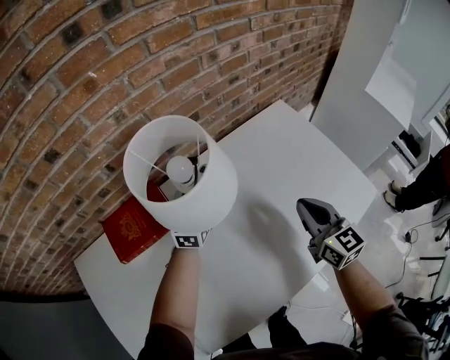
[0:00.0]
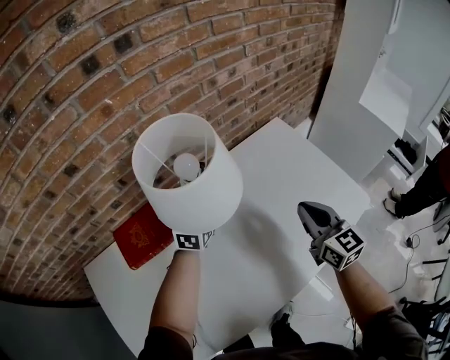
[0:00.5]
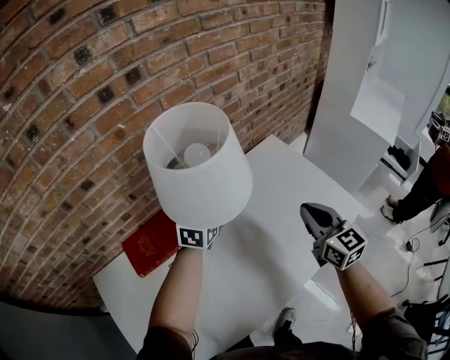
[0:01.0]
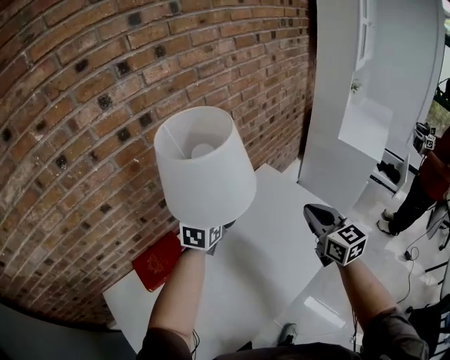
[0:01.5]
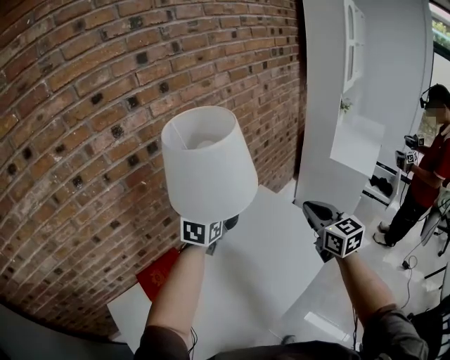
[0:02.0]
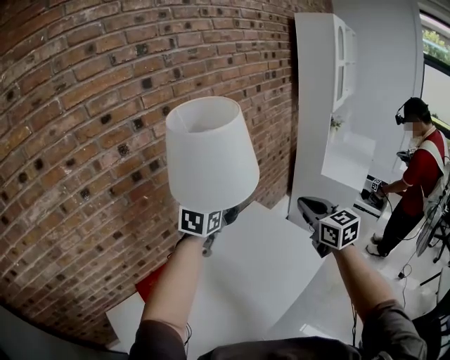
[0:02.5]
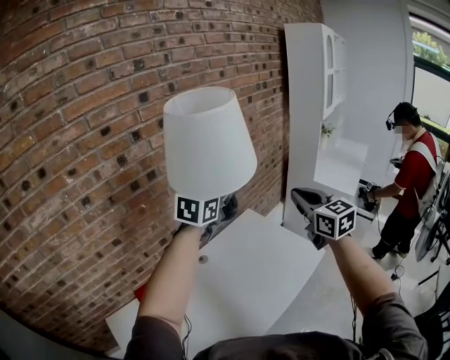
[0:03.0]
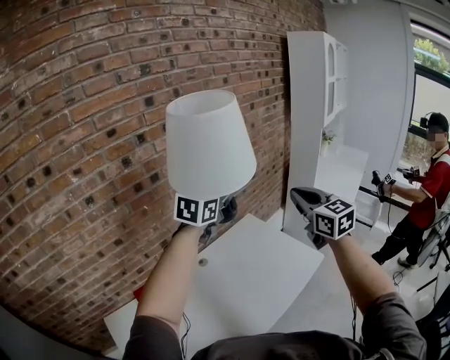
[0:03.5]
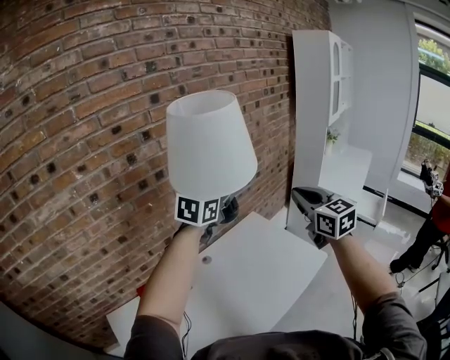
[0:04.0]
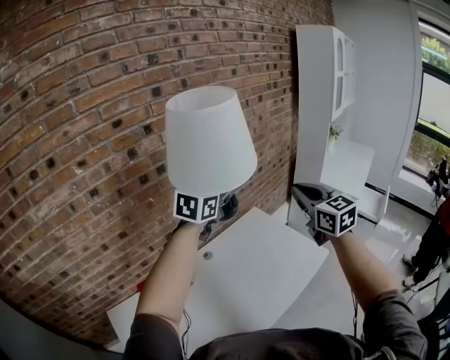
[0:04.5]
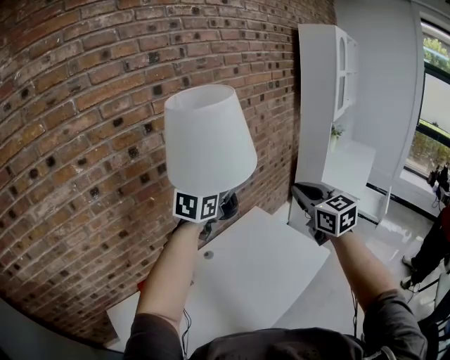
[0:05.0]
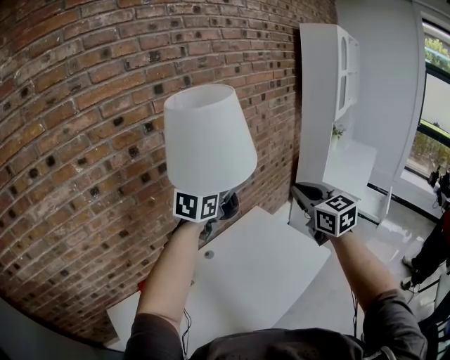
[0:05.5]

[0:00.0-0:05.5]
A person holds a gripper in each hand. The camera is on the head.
0:00.0 to 0:02.0: The right gripper travels upward by roughly 25 cm. Meanwhile the left gripper moves upward and to the right, about 35 cm.
0:02.0 to 0:03.5: The grippers both shift upward by roughly 15 cm.
0:03.5 to 0:05.5: The grippers move only a little.

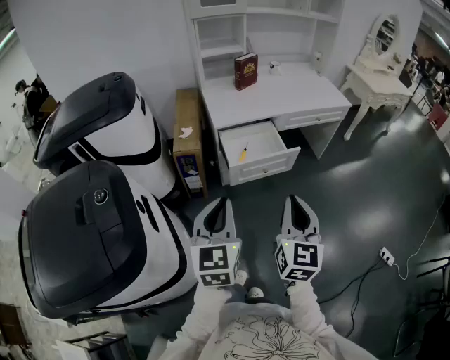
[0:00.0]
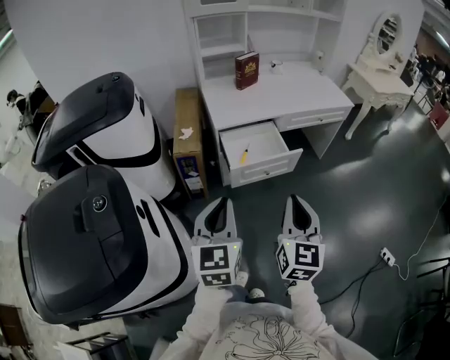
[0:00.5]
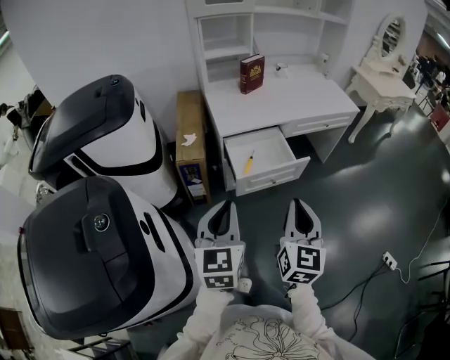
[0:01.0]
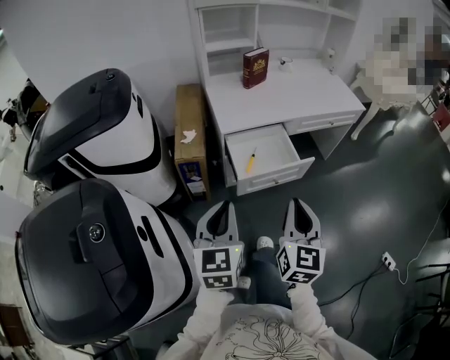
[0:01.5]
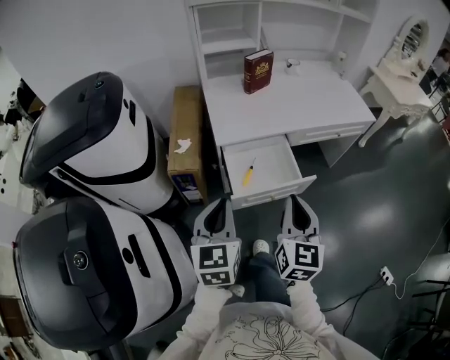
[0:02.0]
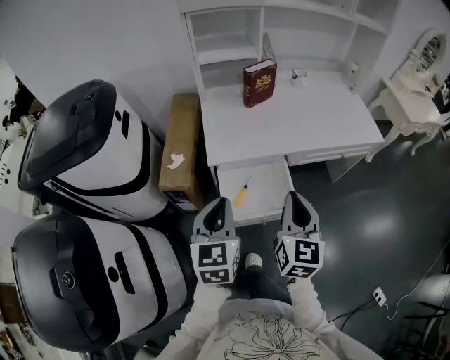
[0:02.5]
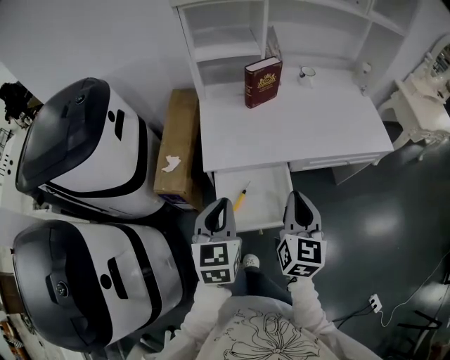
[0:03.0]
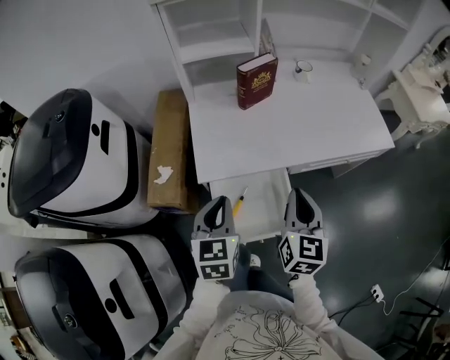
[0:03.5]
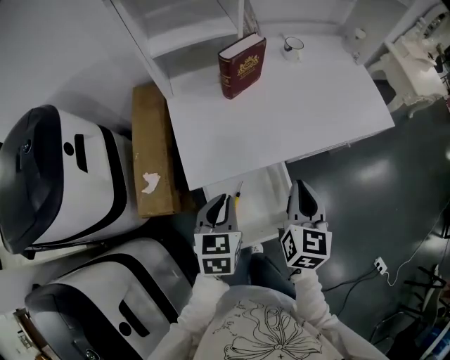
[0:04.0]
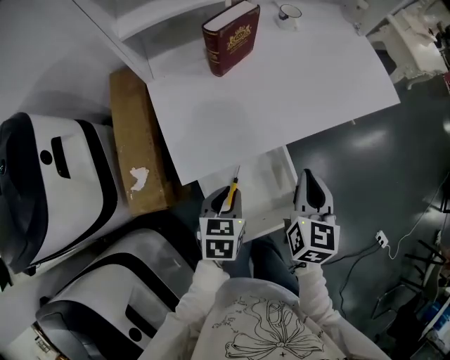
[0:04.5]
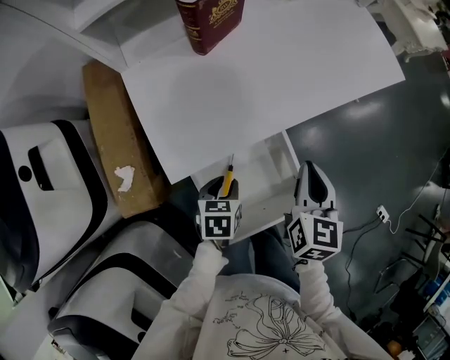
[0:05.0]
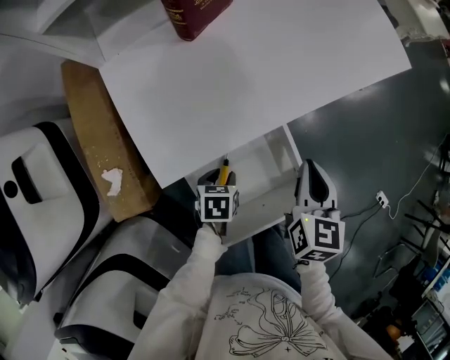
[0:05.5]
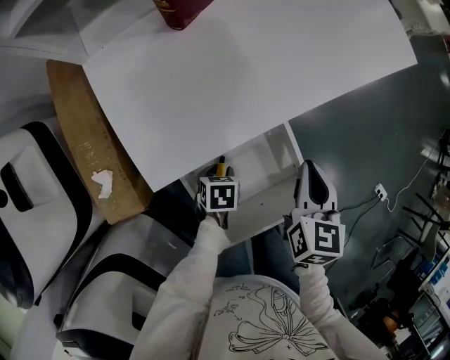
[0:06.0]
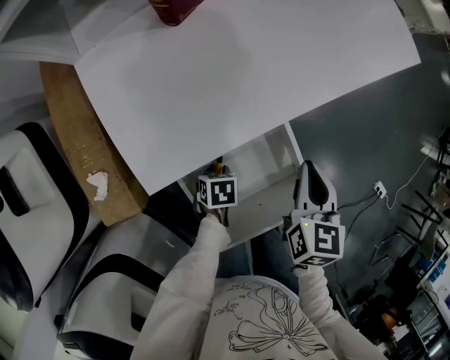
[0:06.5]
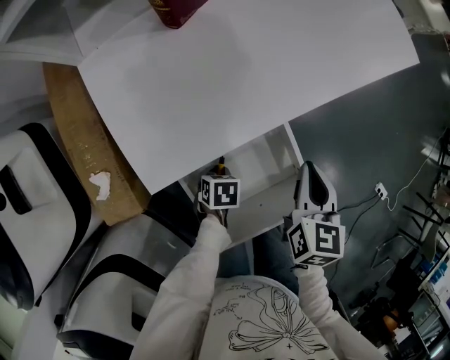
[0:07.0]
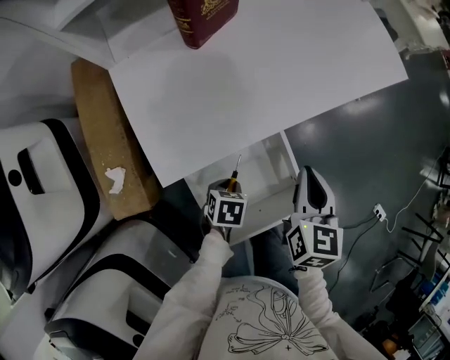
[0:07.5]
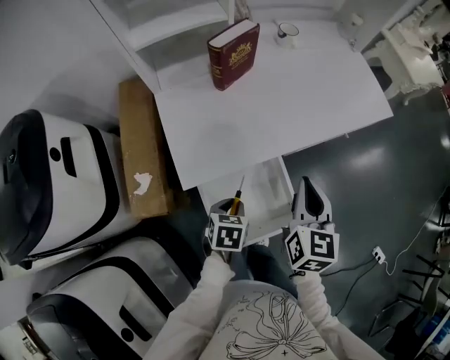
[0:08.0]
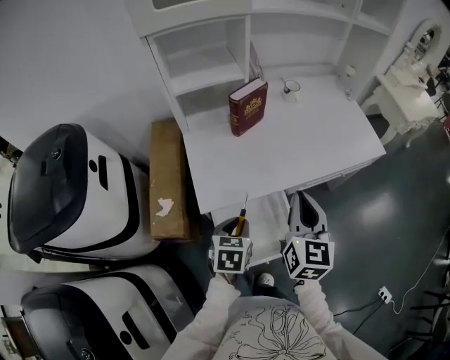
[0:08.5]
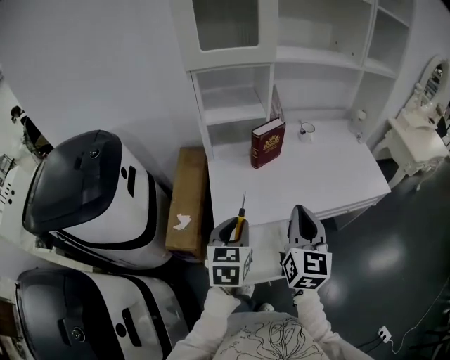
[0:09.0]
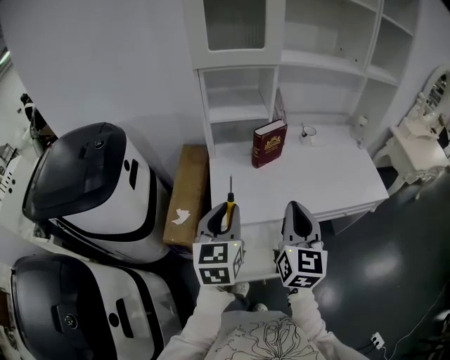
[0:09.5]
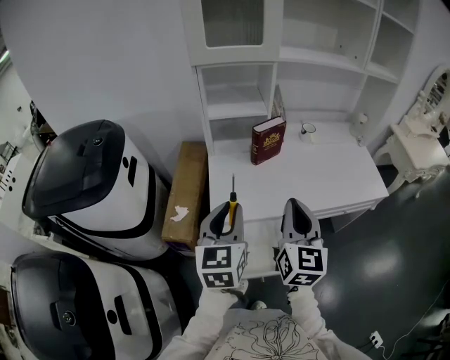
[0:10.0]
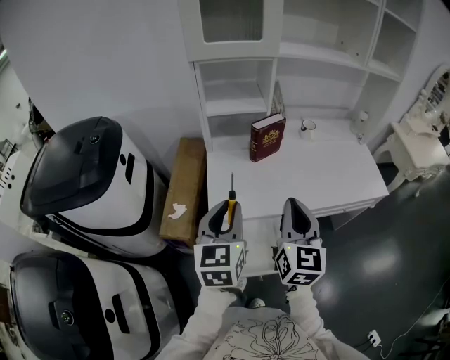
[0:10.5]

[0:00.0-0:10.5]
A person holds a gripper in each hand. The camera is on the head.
0:00.0 to 0:02.0: The grippers both shift forward by roughly 20 cm.
0:02.0 to 0:04.0: The right gripper shifts approximately 30 cm forward. Meanwhile the left gripper moves forward and downward, about 35 cm, and changes its angle by roughly 20 degrees.
0:04.0 to 0:06.5: The left gripper travels downward by about 35 cm, points its fingers about 40 degrees further downward, and opens its fingers. The right gripper goes some 15 cm downward, and swivels some 20 degrees.
0:06.5 to 0:08.5: The two grippers go about 30 cm upward. The left gripper angles its fingers upward, by approximately 30 degrees; the right gripper swivels about 30 degrees.
0:08.5 to 0:10.5: The left gripper travels upward by roughly 20 cm, and tilts its fingers some 30 degrees upward, while the right gripper moves upward, some 10 cm.

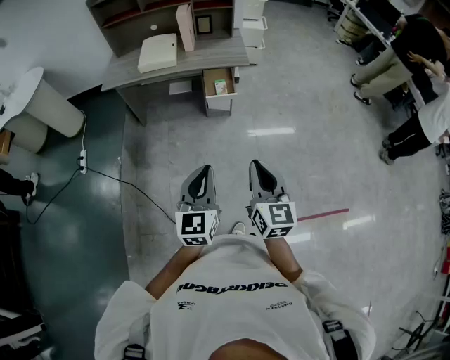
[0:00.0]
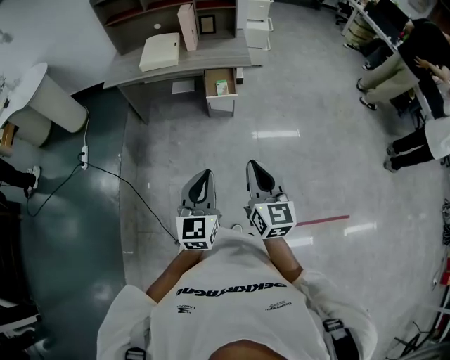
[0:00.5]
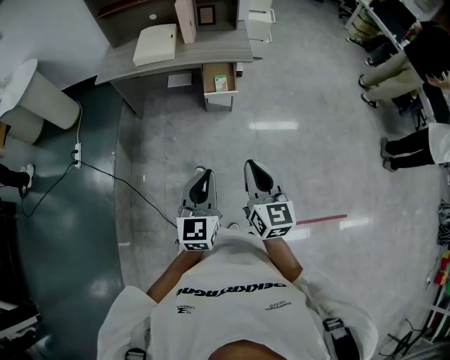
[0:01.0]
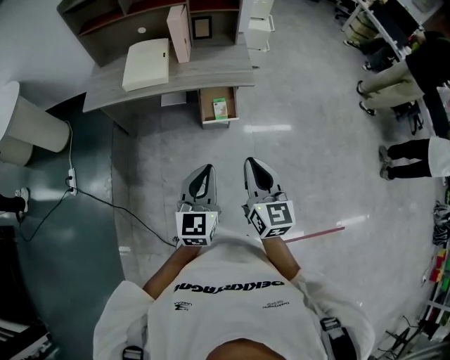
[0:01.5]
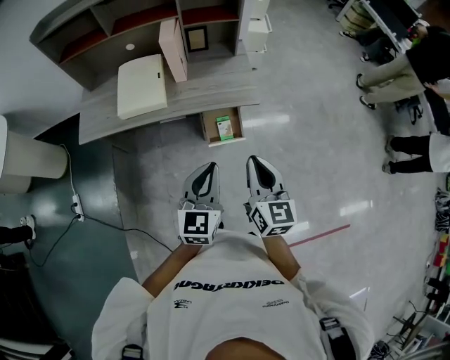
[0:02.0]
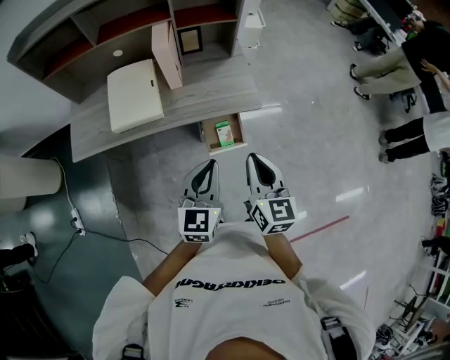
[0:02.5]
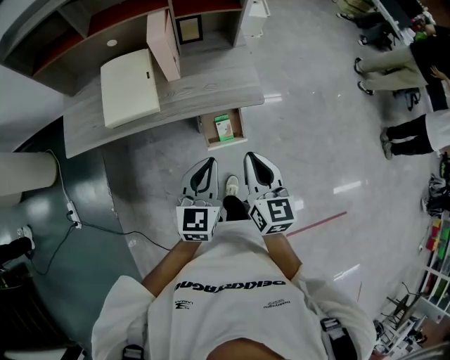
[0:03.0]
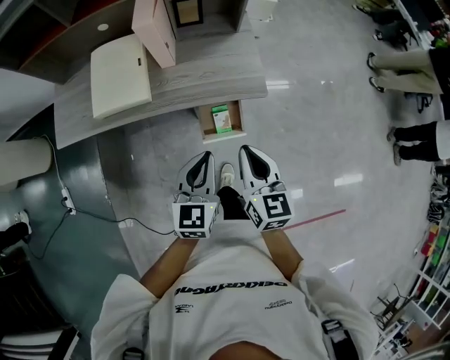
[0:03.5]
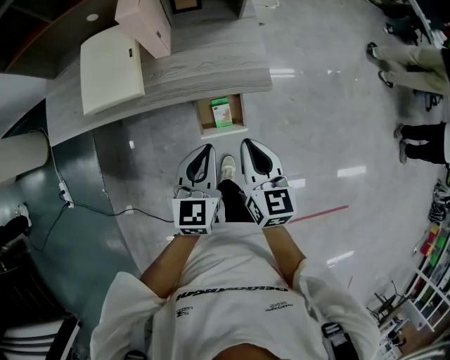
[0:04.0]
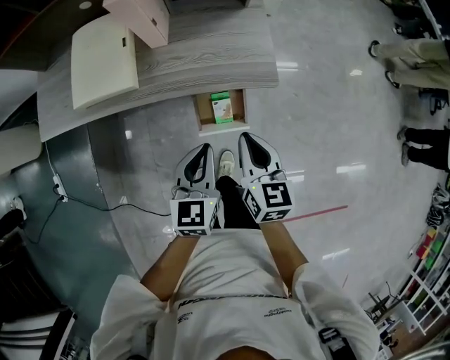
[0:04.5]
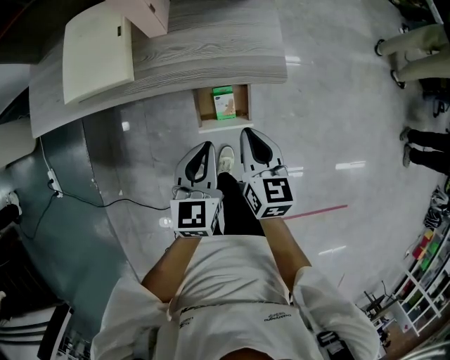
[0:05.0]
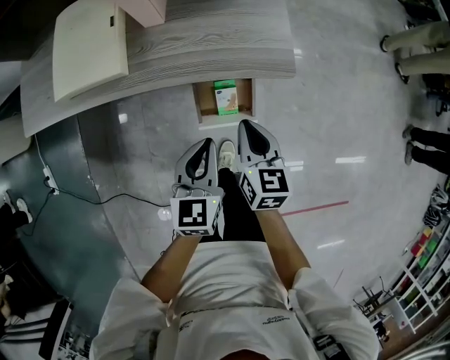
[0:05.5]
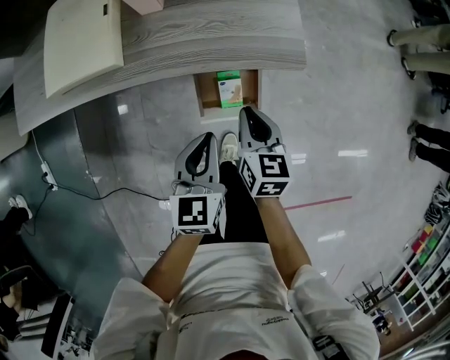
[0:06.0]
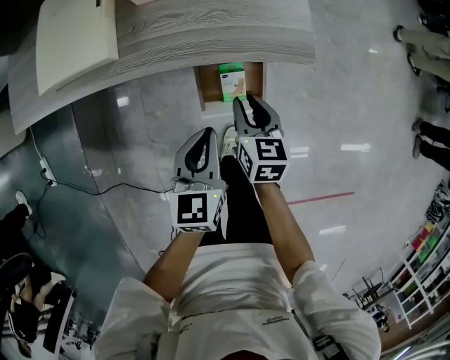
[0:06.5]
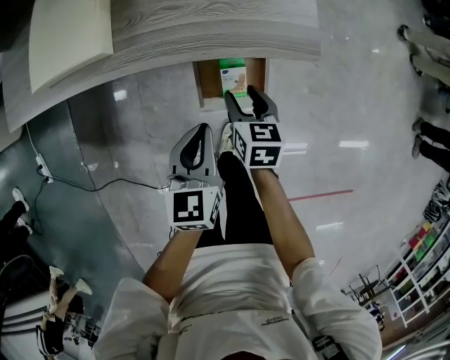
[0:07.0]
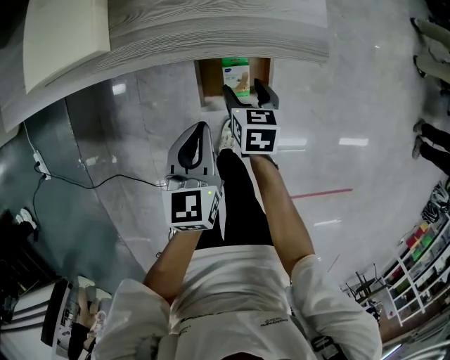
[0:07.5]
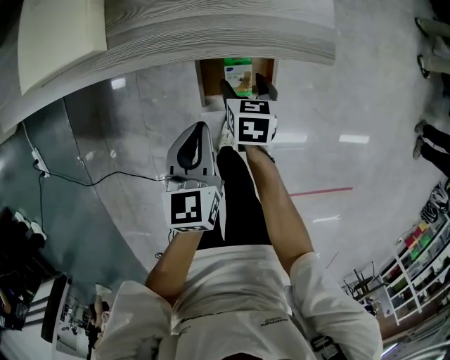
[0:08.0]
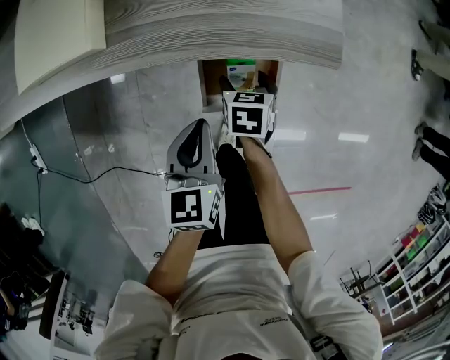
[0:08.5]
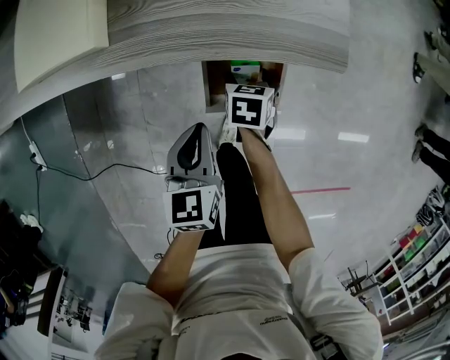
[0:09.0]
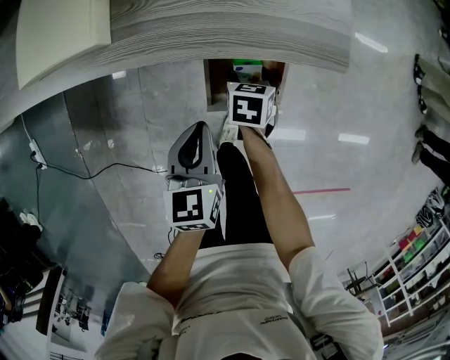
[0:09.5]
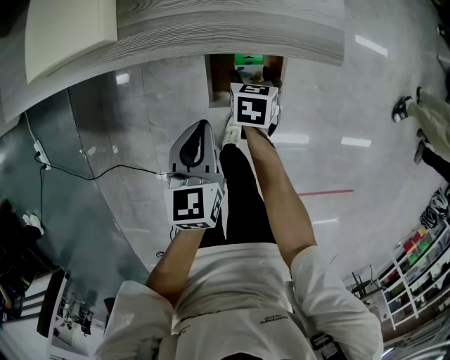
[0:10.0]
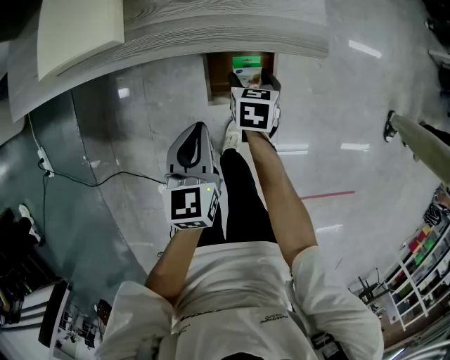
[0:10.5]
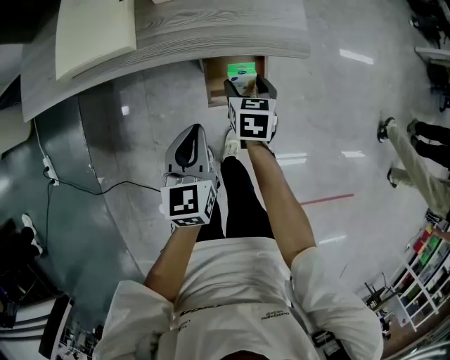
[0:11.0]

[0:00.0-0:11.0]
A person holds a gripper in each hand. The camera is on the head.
0:00.0 to 0:02.0: Both grippers are carried forward, about 40 cm.
0:02.0 to 0:03.5: The two grippers go approximately 15 cm forward and downward.
0:03.5 to 0:05.5: Both grippers travel together downward, some 20 cm.
0:05.5 to 0:07.5: The left gripper travels downward by some 10 cm, while the right gripper shifts roughly 20 cm downward, and opens up.
0:07.5 to 0:09.0: The right gripper goes approximately 5 cm downward.
0:09.0 to 0:11.0: The grippers both shift upward by some 10 cm.
